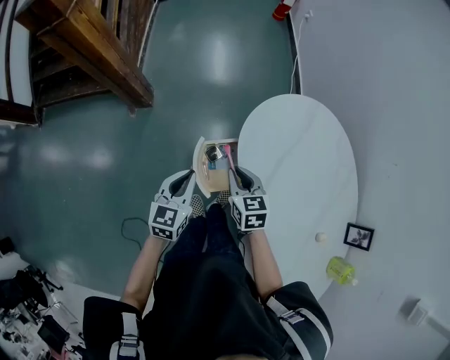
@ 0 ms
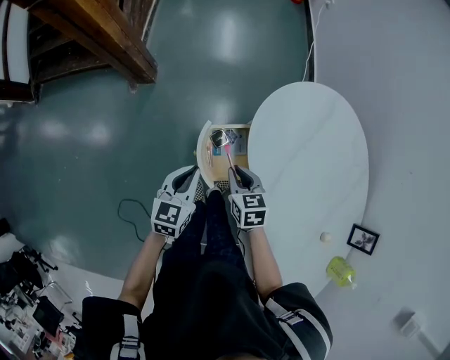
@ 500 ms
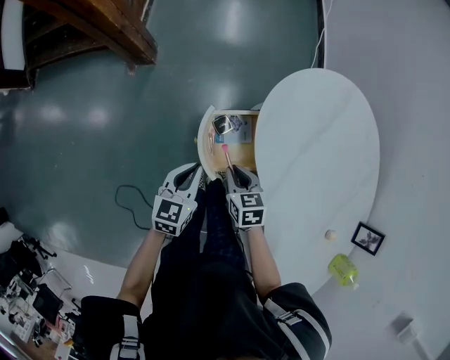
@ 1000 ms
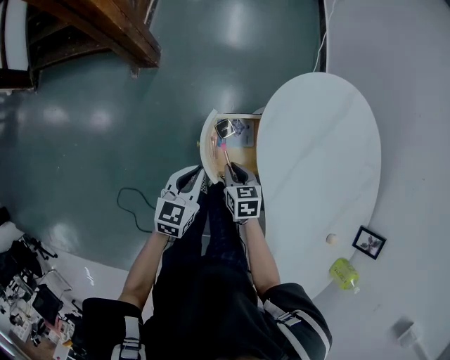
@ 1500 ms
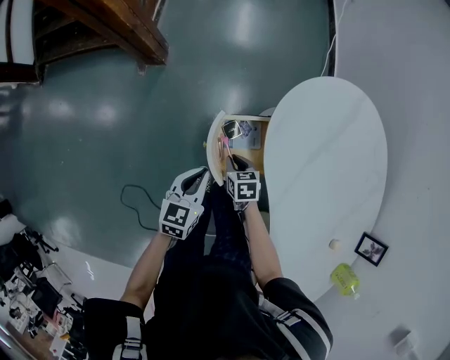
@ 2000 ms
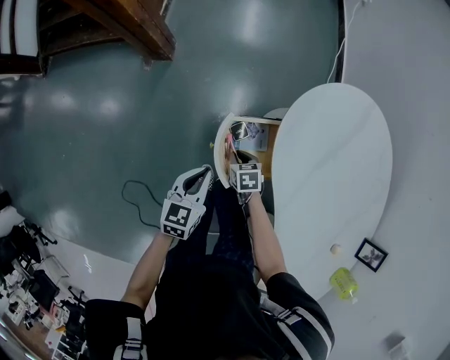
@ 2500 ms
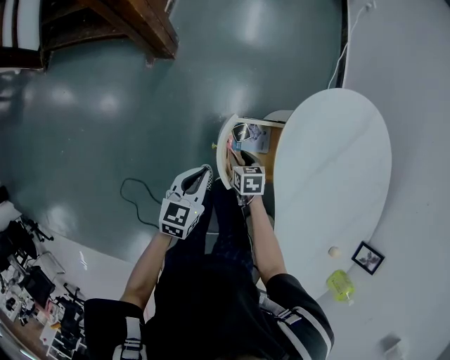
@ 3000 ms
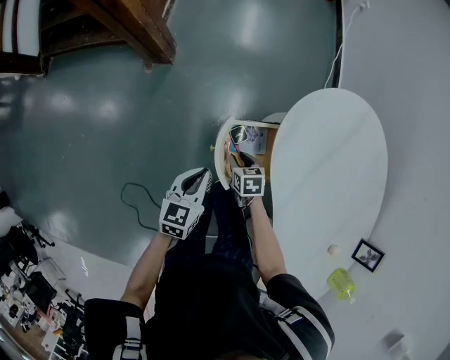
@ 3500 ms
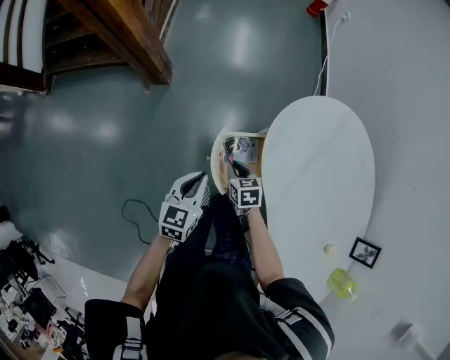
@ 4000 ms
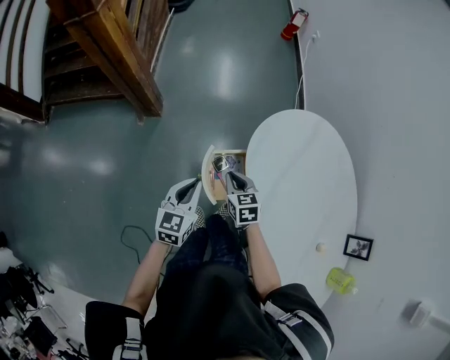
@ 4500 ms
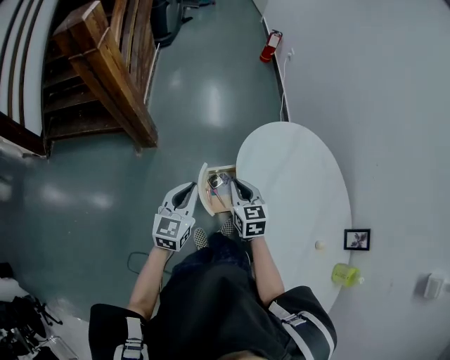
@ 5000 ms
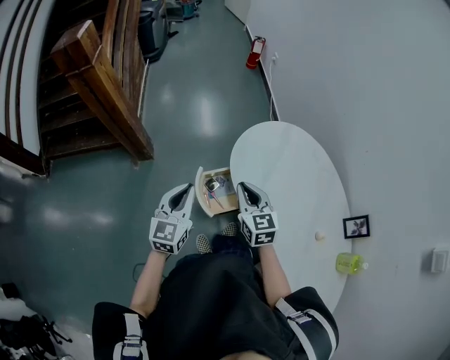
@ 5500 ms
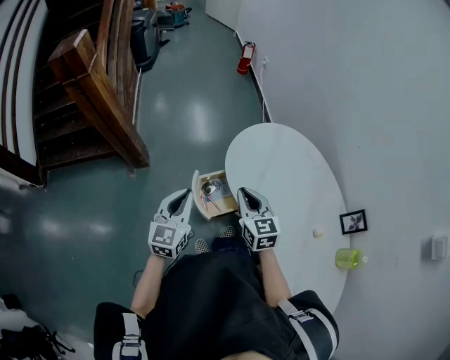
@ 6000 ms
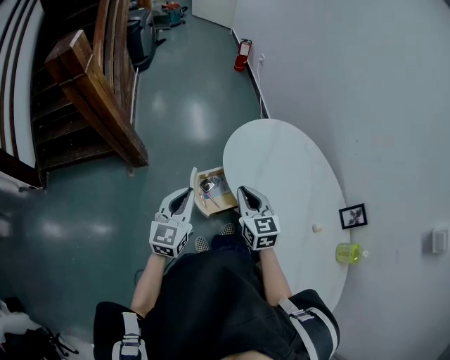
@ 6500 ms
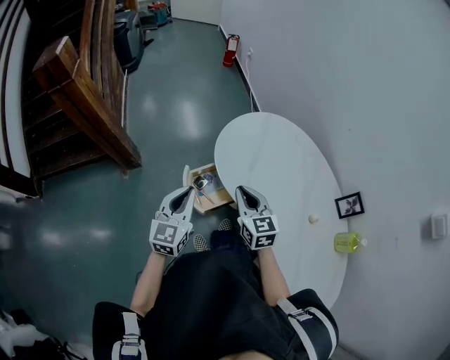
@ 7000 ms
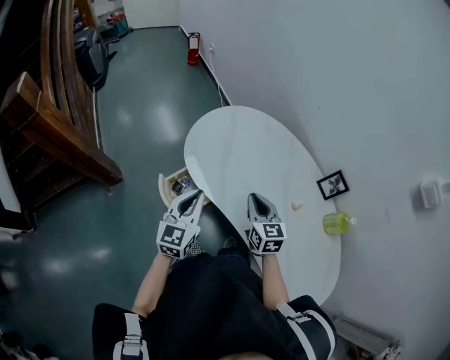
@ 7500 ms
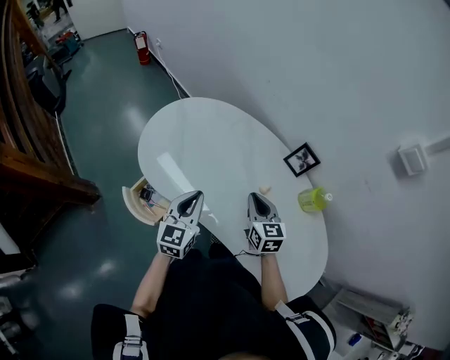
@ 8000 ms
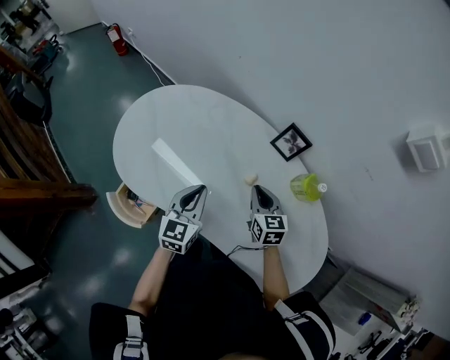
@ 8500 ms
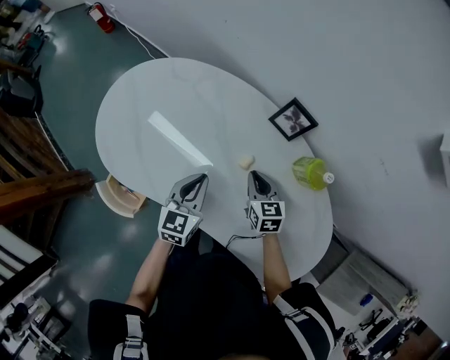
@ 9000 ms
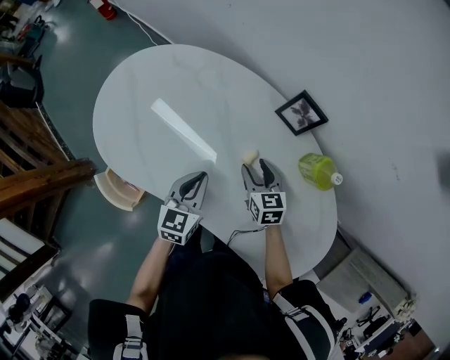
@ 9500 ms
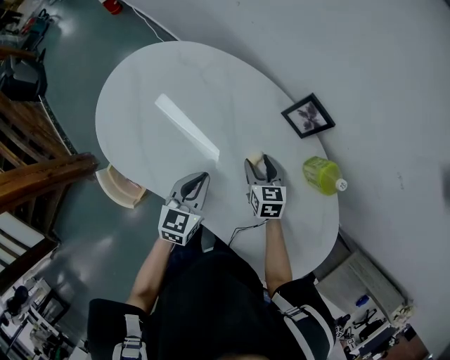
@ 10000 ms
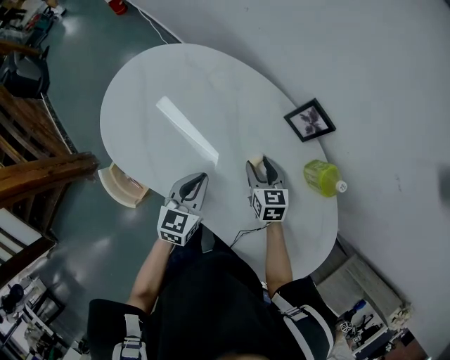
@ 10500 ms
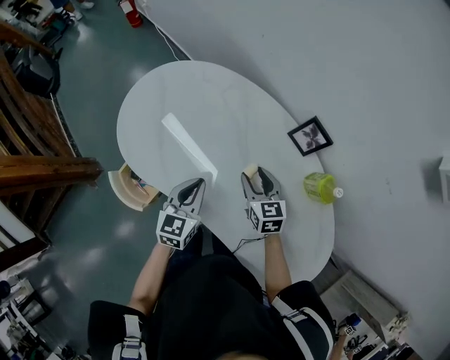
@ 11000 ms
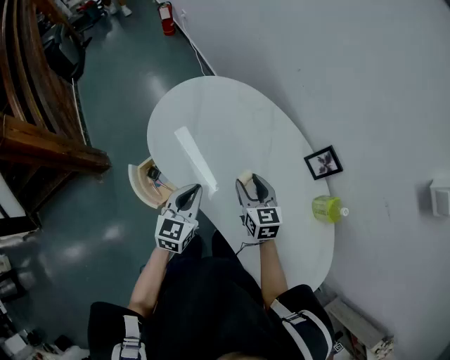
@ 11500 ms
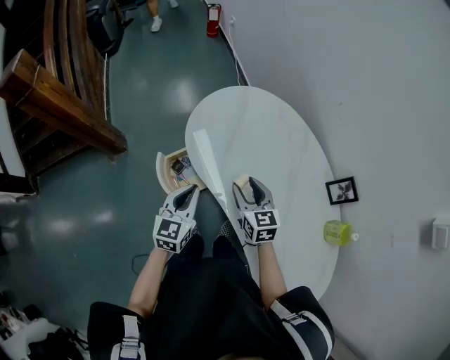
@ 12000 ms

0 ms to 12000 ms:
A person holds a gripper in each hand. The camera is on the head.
0 ms to 2000 ms: The left gripper goes approximately 15 cm downward. Meanwhile the right gripper heads downward, covering about 25 cm, and rotates about 20 degrees.
2000 ms to 4000 ms: Both grippers travel together upward, approximately 5 cm.
4000 ms to 6000 ms: The left gripper goes about 20 cm upward, and swivels approximately 30 degrees, while the right gripper is displaced upward by roughly 35 cm, and tilts its fingers about 30 degrees upward.
6000 ms to 8000 ms: The right gripper shifts by about 35 cm, and swivels some 40 degrees. Meanwhile the left gripper changes place by about 35 cm, and swivels some 30 degrees.
8000 ms to 10000 ms: Both grippers move downward, to the right and forward, about 25 cm. The right gripper opens, while the left gripper changes its angle by about 20 degrees.
10000 ms to 12000 ms: The right gripper ends up roughly 35 cm from where it was, and changes its angle by some 30 degrees. The left gripper changes place by about 30 cm, and swivels roughly 30 degrees.

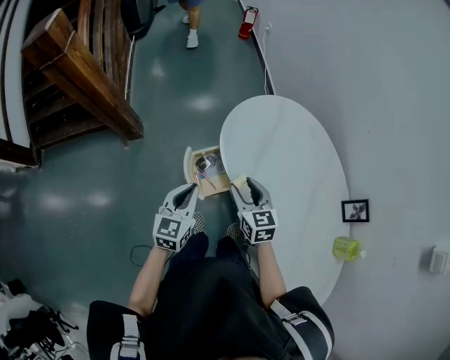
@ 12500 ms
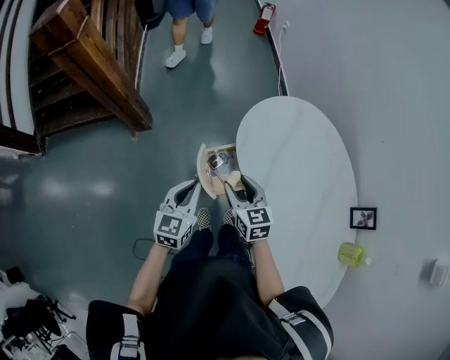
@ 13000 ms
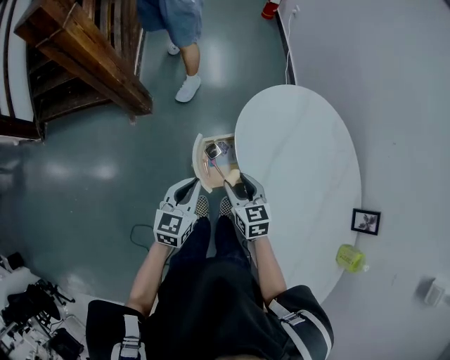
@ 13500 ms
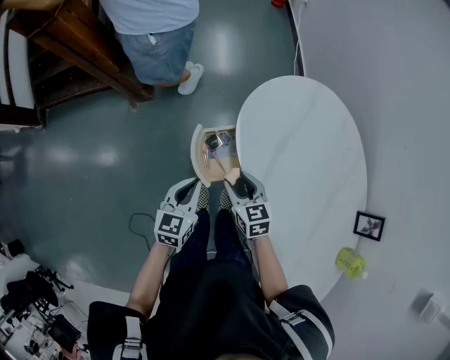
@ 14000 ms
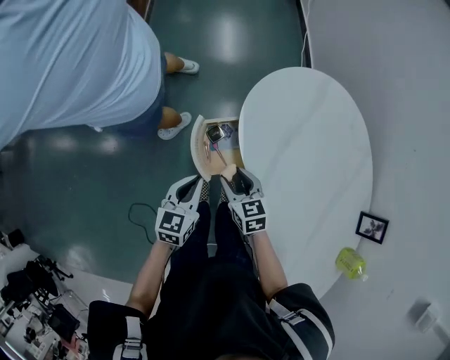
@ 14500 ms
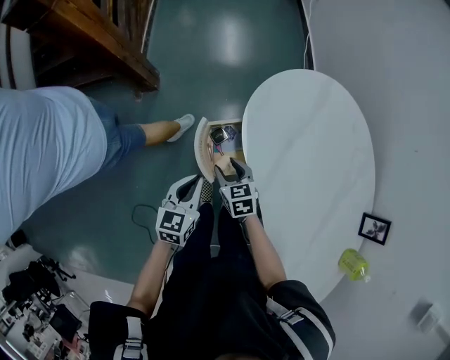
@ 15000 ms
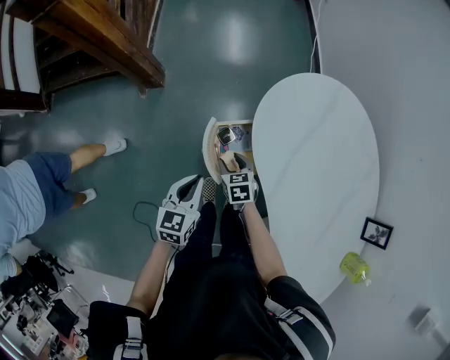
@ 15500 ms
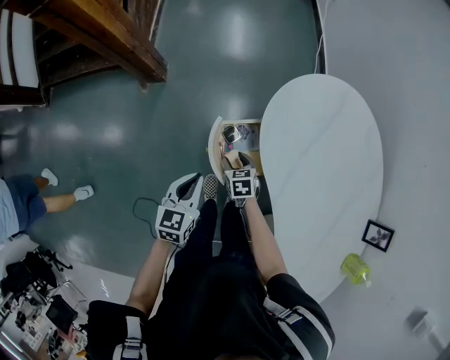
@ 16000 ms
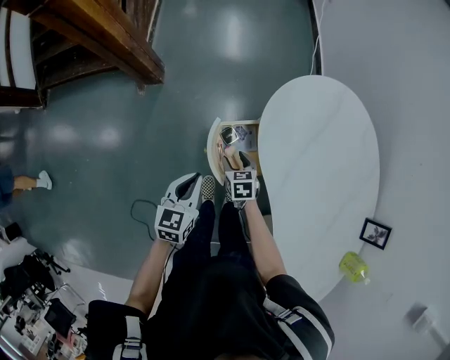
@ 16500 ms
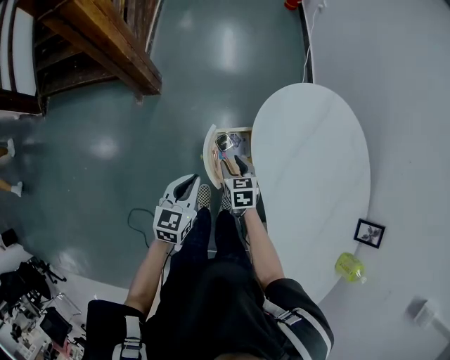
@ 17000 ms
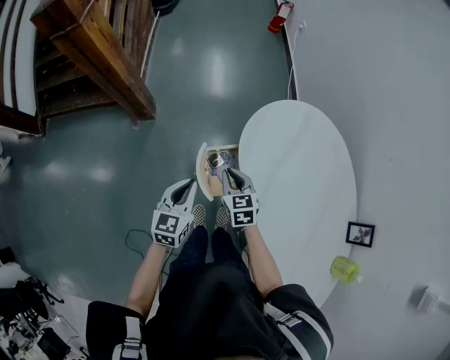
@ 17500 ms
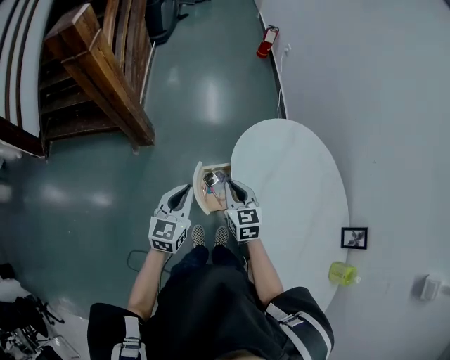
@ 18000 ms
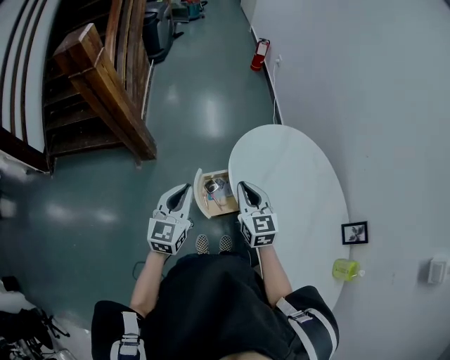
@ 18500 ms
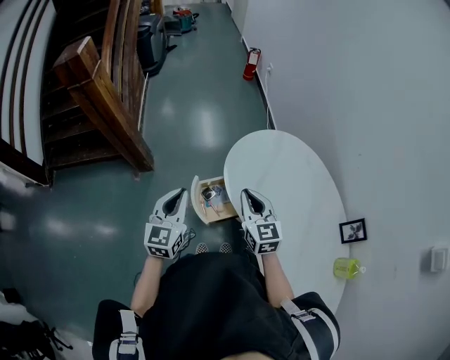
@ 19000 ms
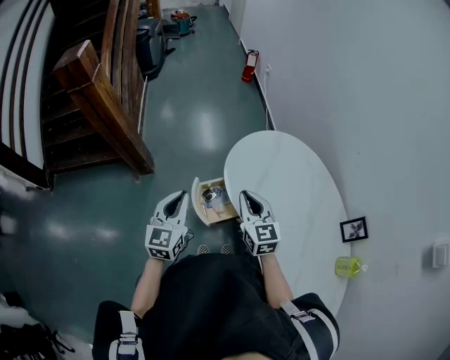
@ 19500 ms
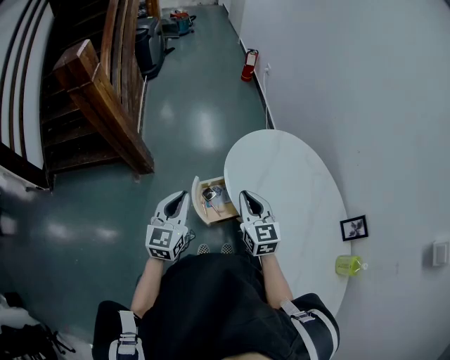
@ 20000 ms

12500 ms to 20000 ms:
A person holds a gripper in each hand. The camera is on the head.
12500 ms to 14500 ms: Both grippers move downward, some 15 cm.
14500 ms to 16500 ms: The right gripper heads downward, forward and to the left, covering about 15 cm, while the left gripper shifts some 5 cm to the left.
16500 ms to 18000 ms: The right gripper shifts some 30 cm upward, changes its angle by about 30 degrees, and closes, while the left gripper is displaced upward by approximately 15 cm.
18000 ms to 20000 ms: The right gripper is displaced upward, to the right and backward by about 15 cm. The left gripper travels upward by roughly 5 cm.

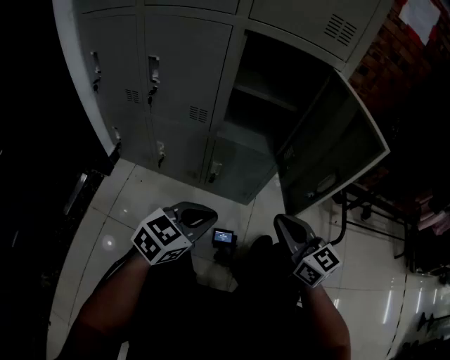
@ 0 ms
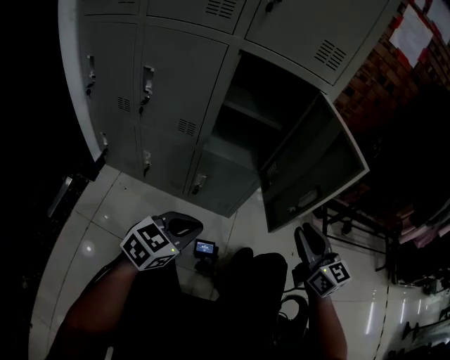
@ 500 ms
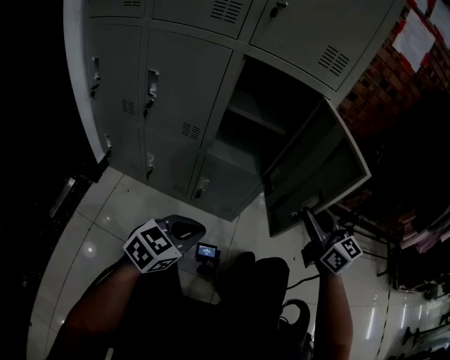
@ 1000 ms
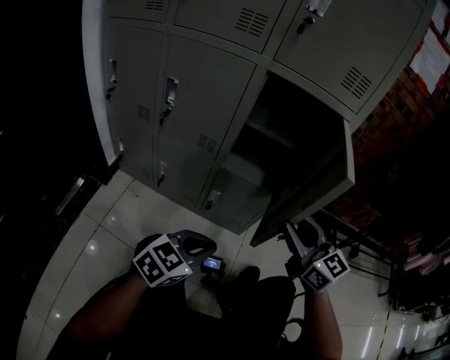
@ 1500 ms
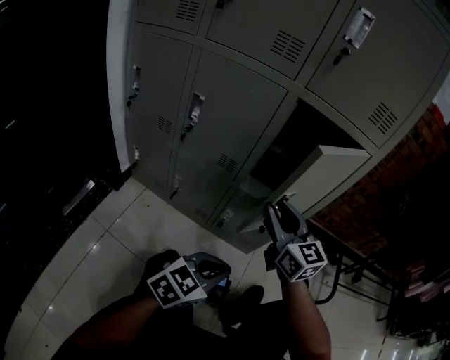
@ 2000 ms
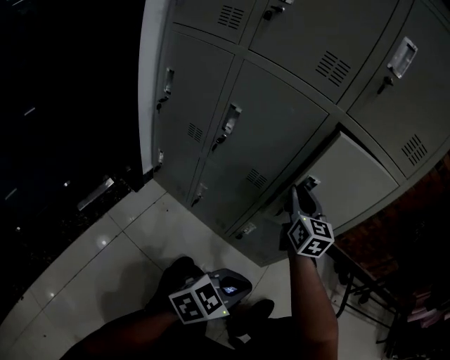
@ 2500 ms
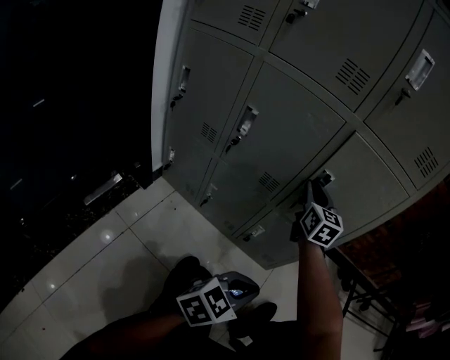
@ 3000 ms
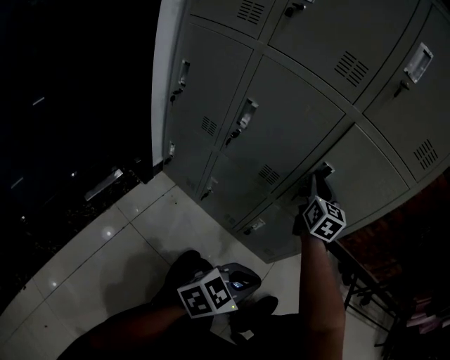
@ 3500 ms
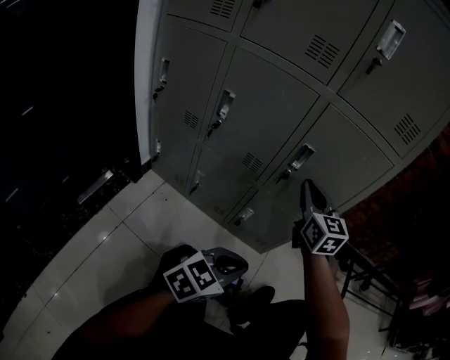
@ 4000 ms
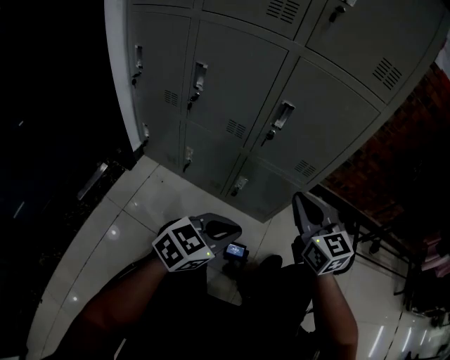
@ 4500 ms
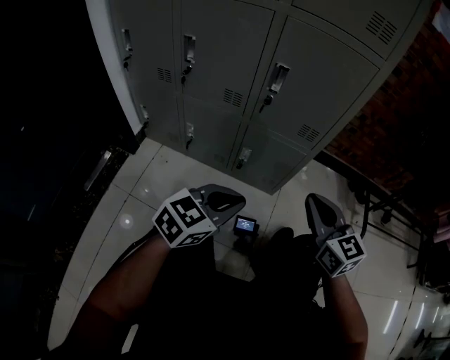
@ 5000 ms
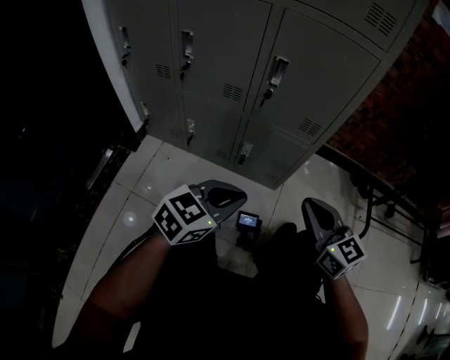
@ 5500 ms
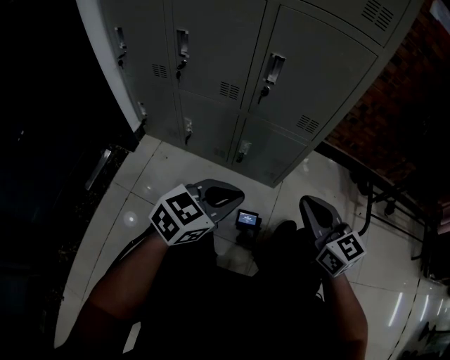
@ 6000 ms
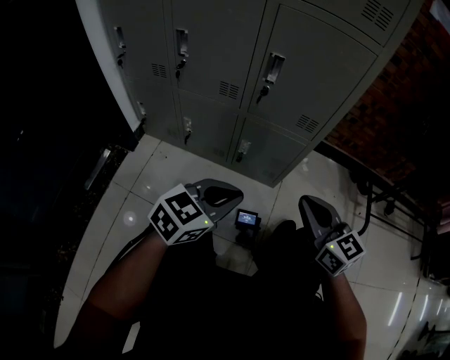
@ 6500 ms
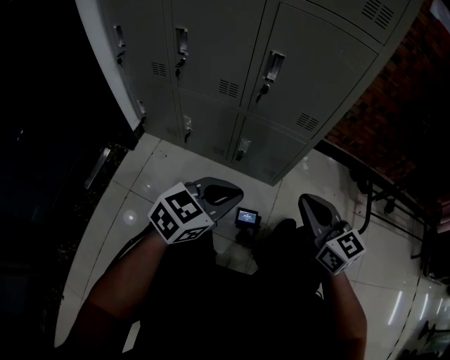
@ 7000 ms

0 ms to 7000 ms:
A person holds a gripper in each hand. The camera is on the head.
0 ms to 2000 ms: The right gripper goes about 20 cm to the left, forward and upward, and opens up.
2000 ms to 3500 ms: The right gripper goes approximately 15 cm forward and to the left.
3500 ms to 5000 ms: The right gripper shifts some 30 cm backward and to the right.
5000 ms to 7000 ms: There are only small adjustments of the grippers.
